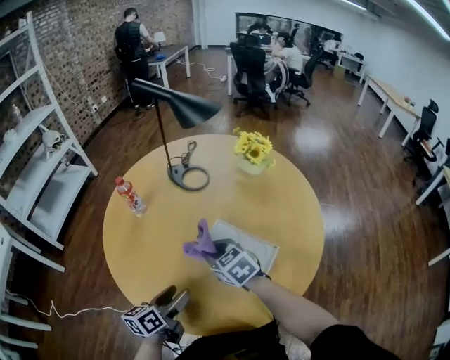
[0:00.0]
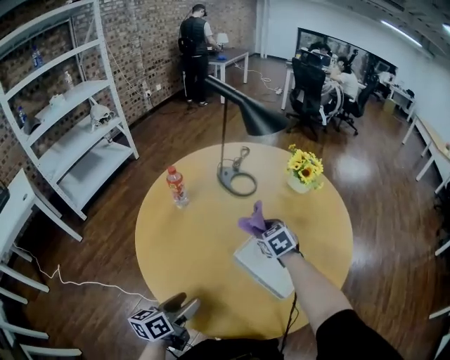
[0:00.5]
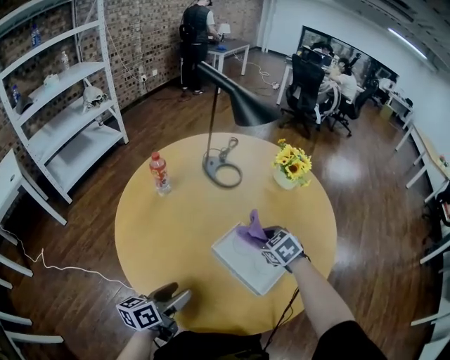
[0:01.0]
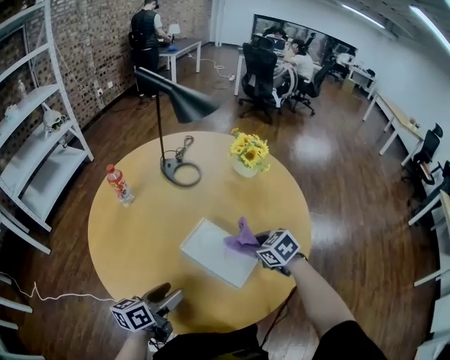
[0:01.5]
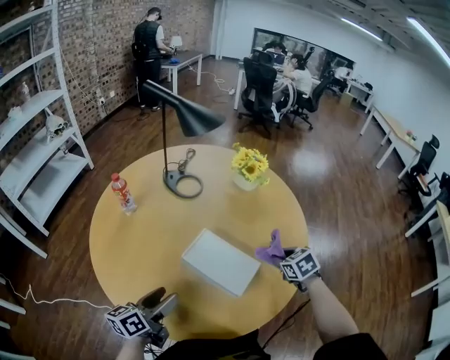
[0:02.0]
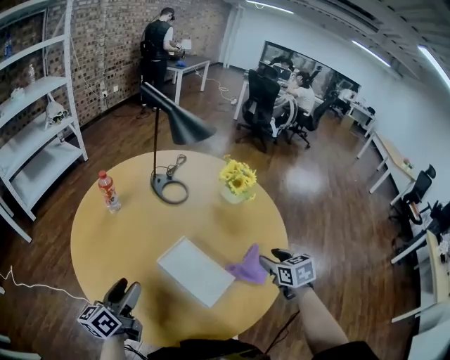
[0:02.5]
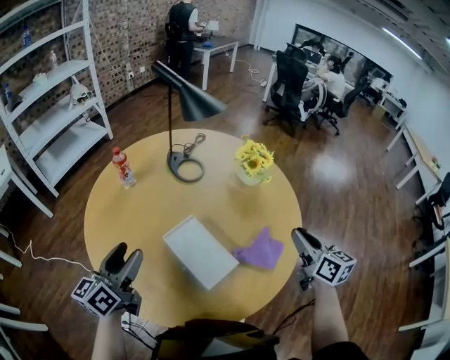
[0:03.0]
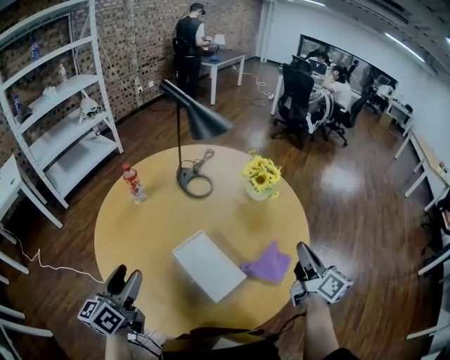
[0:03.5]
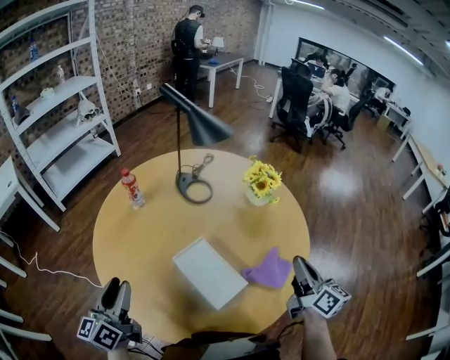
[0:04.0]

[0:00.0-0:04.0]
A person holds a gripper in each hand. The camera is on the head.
0:00.0 to 0:02.0: The right gripper travels to the right by about 30 cm, and changes its angle by about 20 degrees. The left gripper goes to the right and returns, some 5 cm each way.
0:02.0 to 0:04.0: The right gripper shifts some 20 cm upward, tips its fingers upward by about 50 degrees, and closes its fingers. The left gripper moves upward and to the left, some 15 cm, and changes its angle by about 40 degrees.

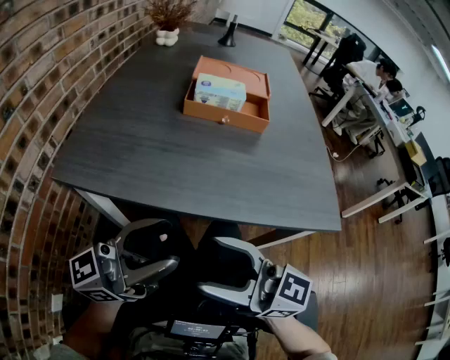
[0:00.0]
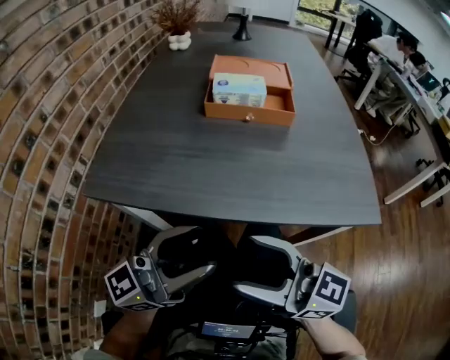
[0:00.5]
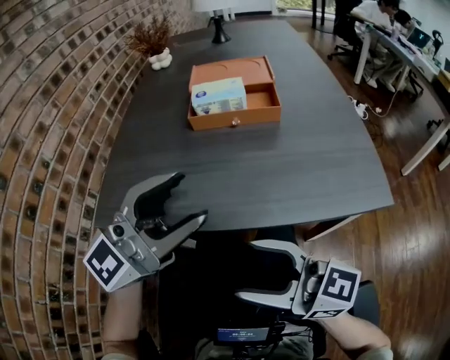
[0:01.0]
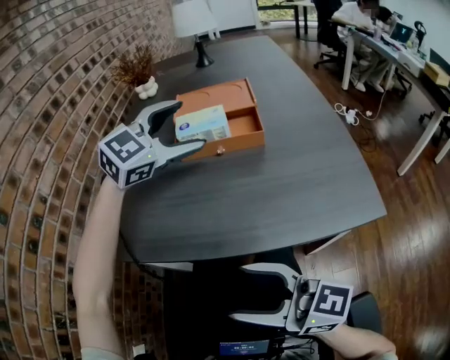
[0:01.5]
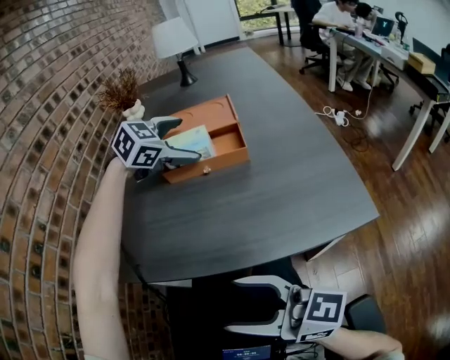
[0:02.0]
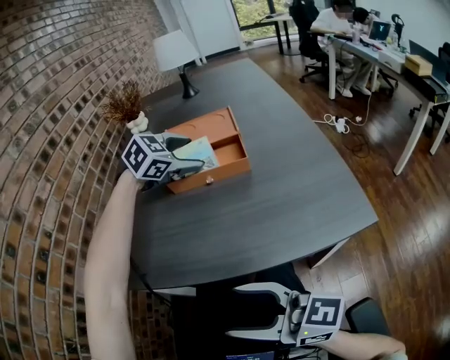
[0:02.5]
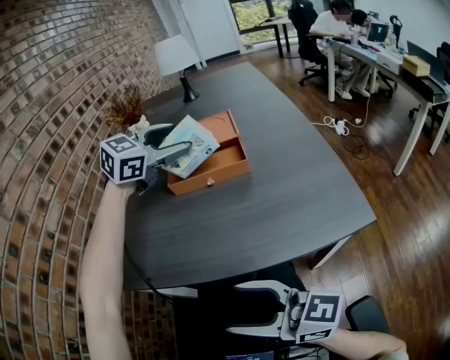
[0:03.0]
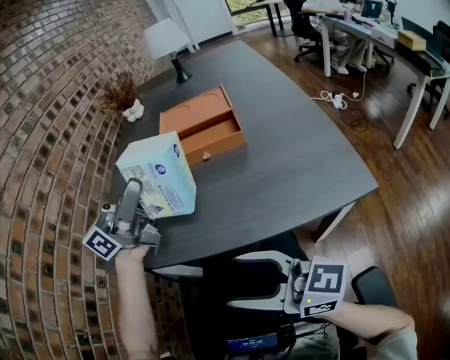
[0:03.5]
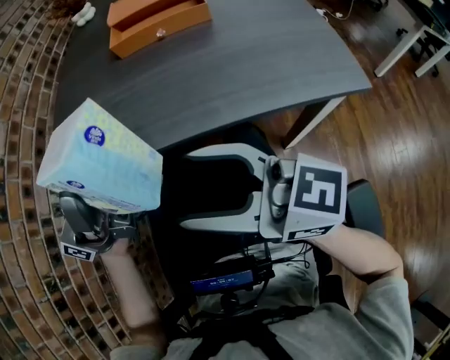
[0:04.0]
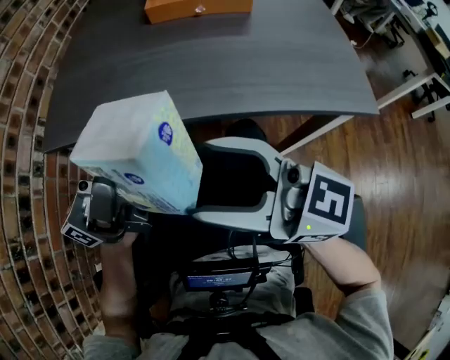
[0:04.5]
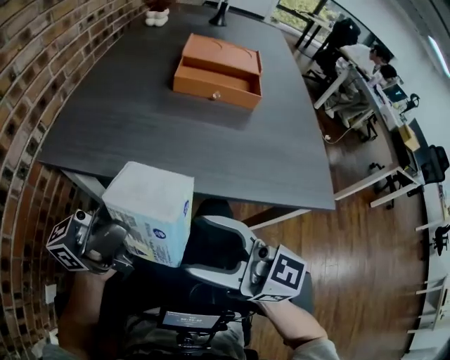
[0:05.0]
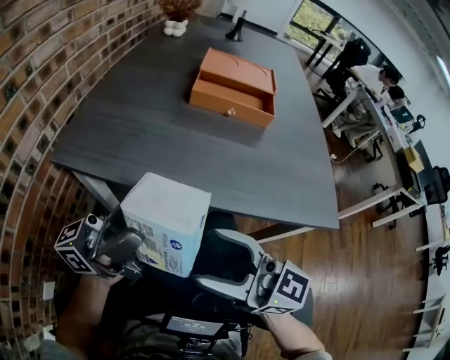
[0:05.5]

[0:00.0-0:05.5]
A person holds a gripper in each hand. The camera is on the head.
0:00.0 to 0:02.0: The left gripper moves forward, about 40 cm, tips its fingers downward by roughly 70 degrees, and opens its fingers.
0:02.0 to 0:03.5: The left gripper is displaced backward, upward and to the left by about 25 cm, angles its fingers upward, by some 70 degrees, and closes its fingers.
0:03.5 to 0:05.5: The left gripper travels backward and downward by approximately 20 cm.

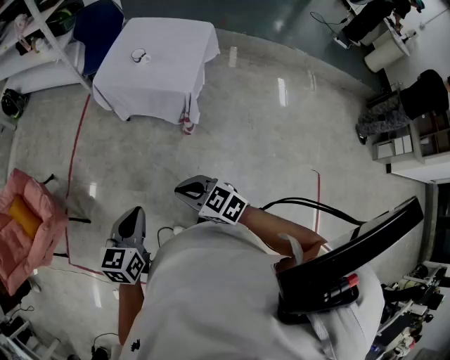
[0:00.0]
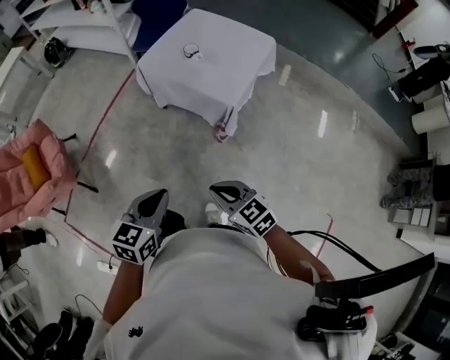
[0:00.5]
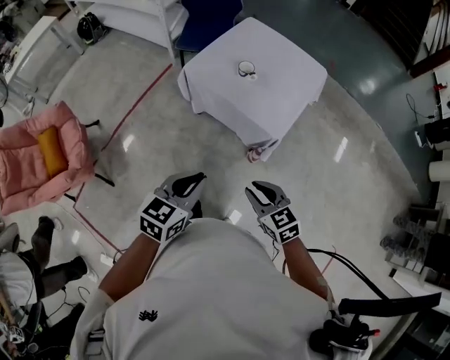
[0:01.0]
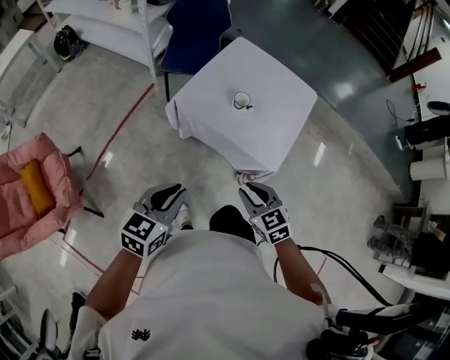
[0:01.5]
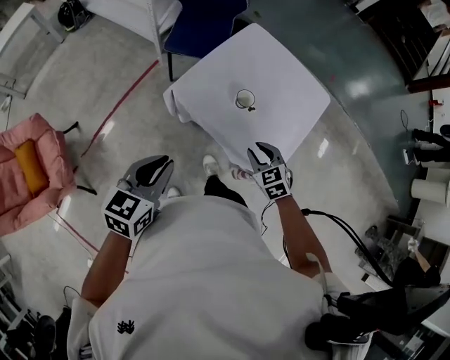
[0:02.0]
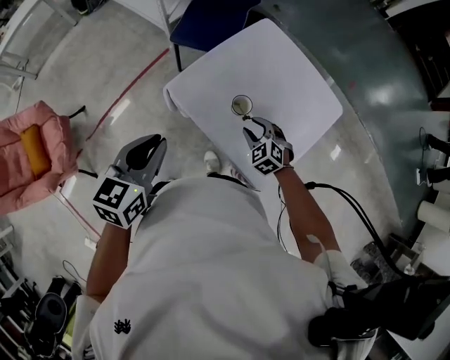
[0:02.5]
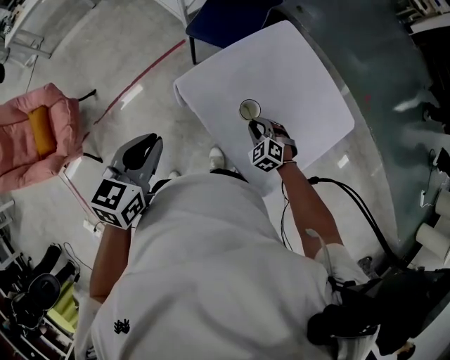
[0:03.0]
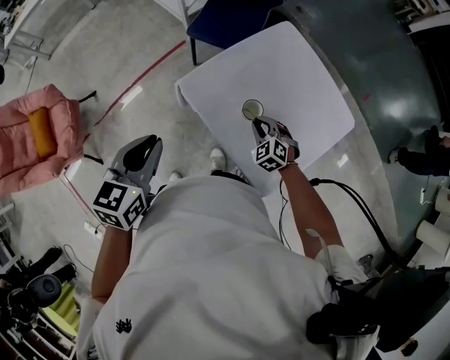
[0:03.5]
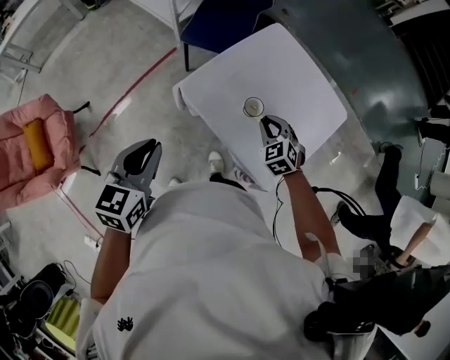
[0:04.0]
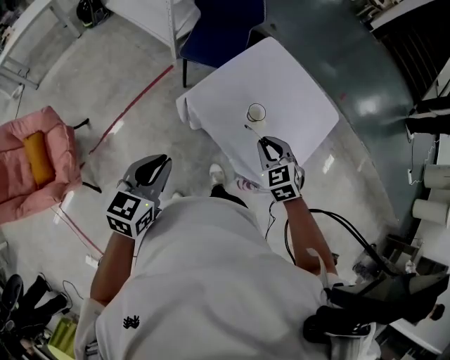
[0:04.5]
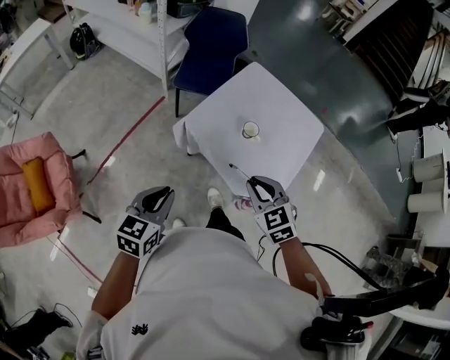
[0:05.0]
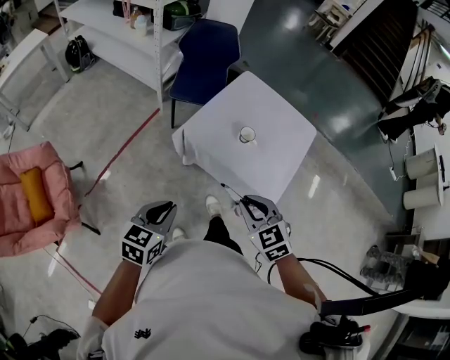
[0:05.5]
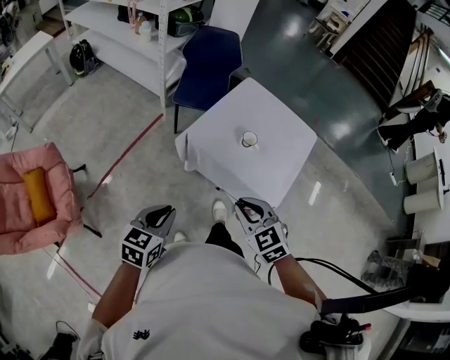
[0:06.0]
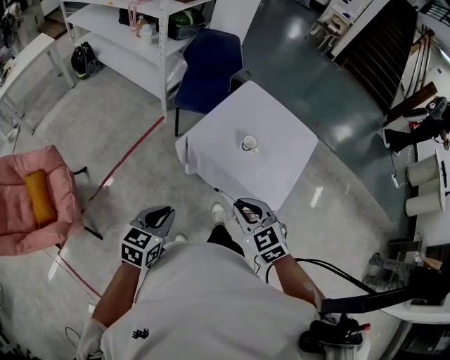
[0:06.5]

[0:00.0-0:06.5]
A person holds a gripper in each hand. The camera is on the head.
0:00.0 to 0:02.0: The two grippers travel together, forward, approximately 50 cm. The right gripper rotates roughly 30 degrees, and opens its fingers.
0:02.0 to 0:04.5: The right gripper goes some 10 cm upward and forward; the left gripper moves approximately 10 cm forward and comes back.
0:04.5 to 0:06.5: The left gripper moves backward, some 15 cm. The right gripper heads backward and to the left, covering roughly 25 cm.

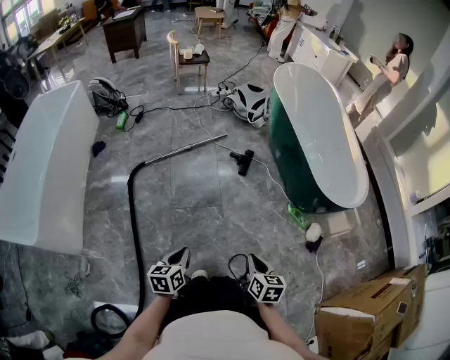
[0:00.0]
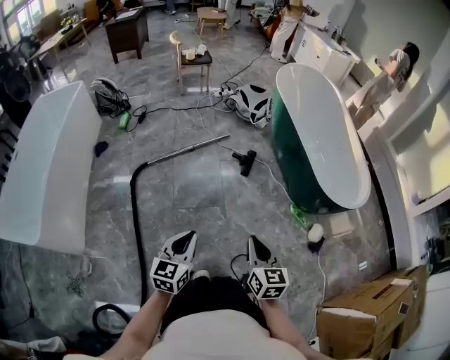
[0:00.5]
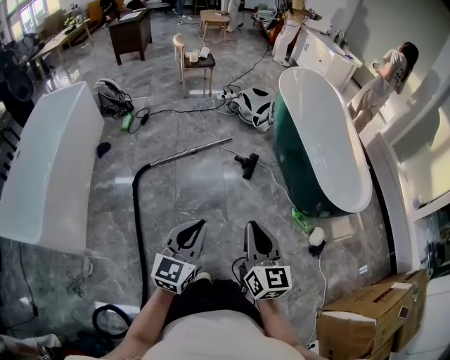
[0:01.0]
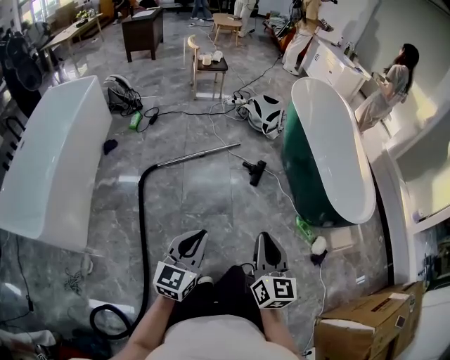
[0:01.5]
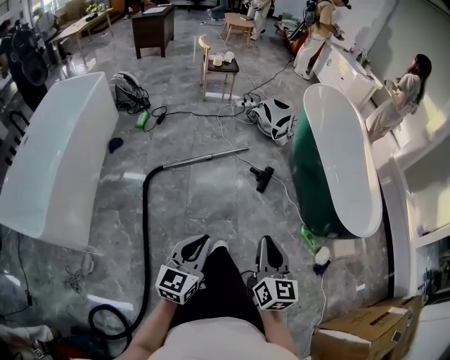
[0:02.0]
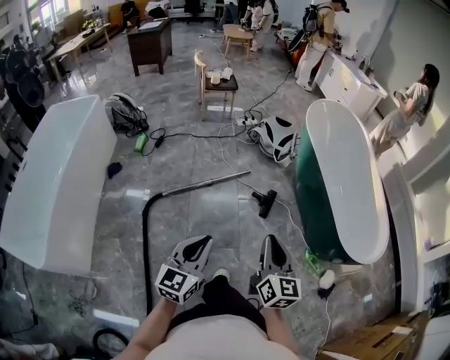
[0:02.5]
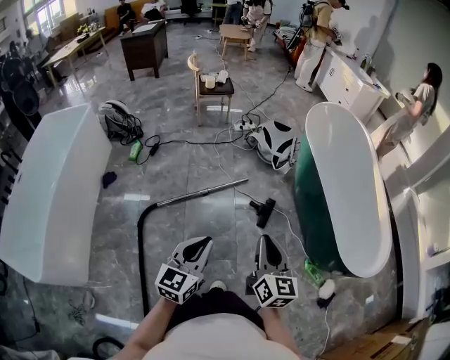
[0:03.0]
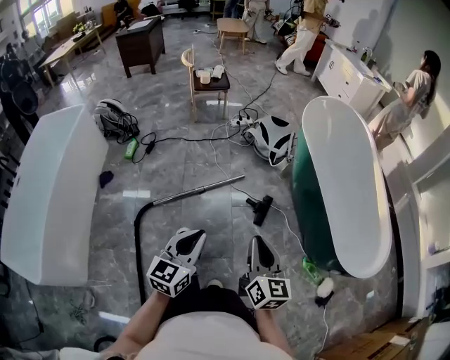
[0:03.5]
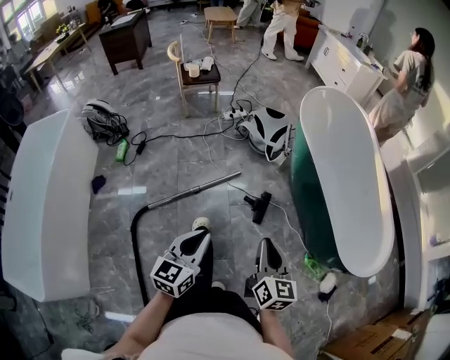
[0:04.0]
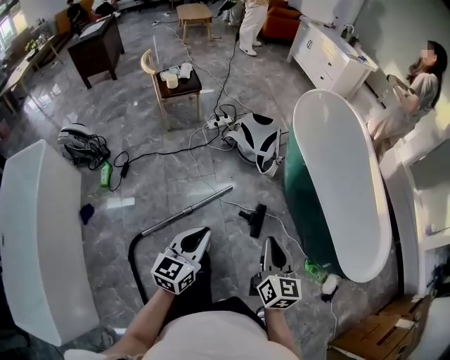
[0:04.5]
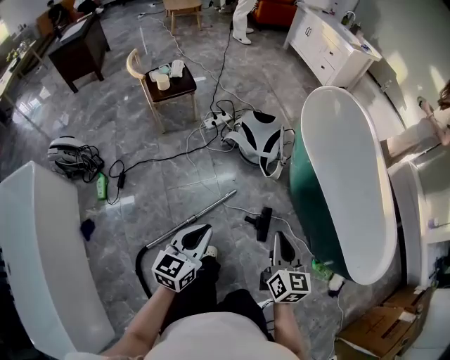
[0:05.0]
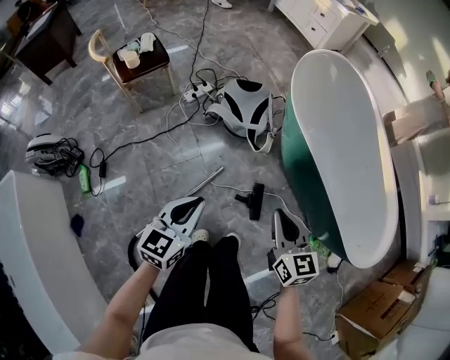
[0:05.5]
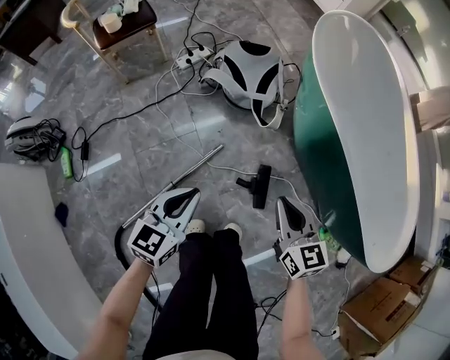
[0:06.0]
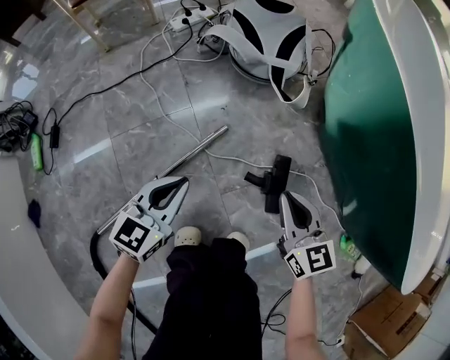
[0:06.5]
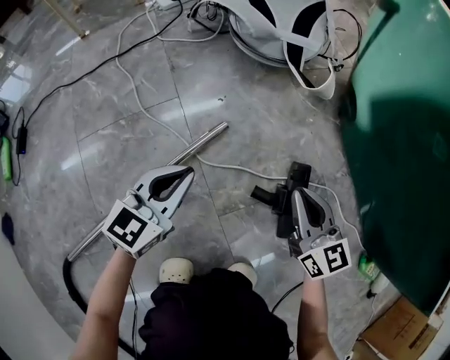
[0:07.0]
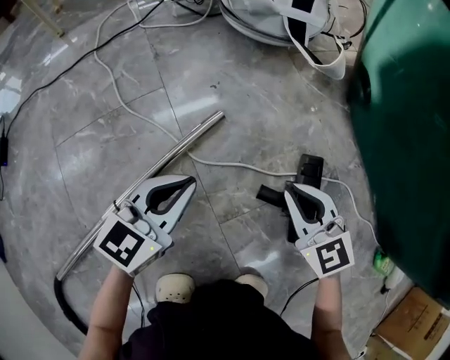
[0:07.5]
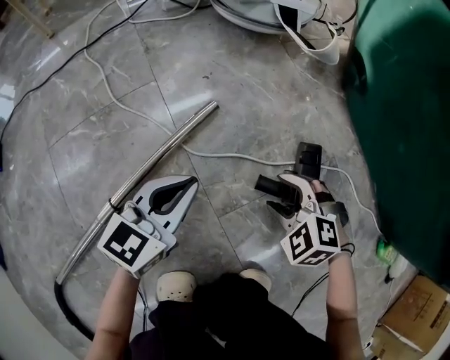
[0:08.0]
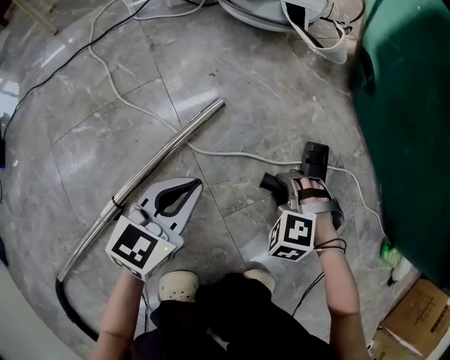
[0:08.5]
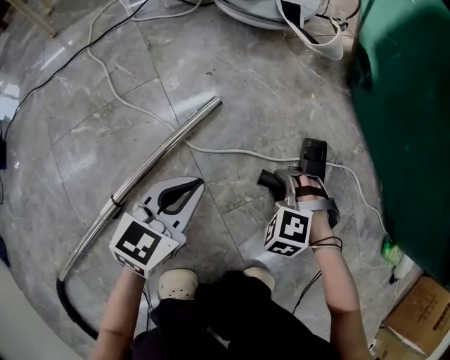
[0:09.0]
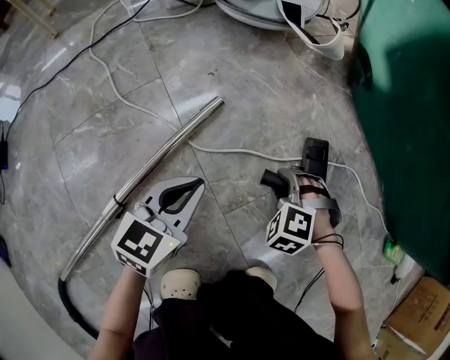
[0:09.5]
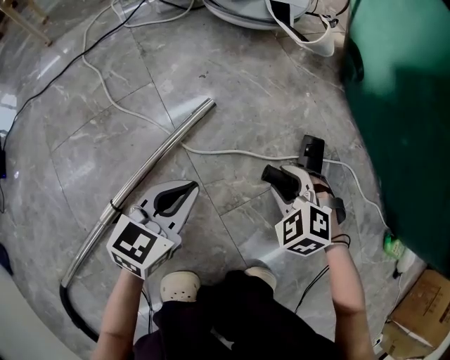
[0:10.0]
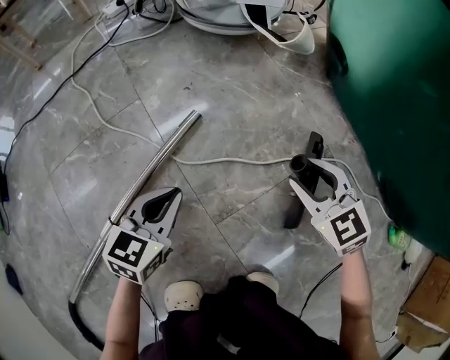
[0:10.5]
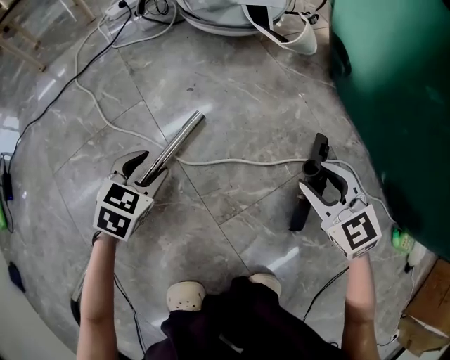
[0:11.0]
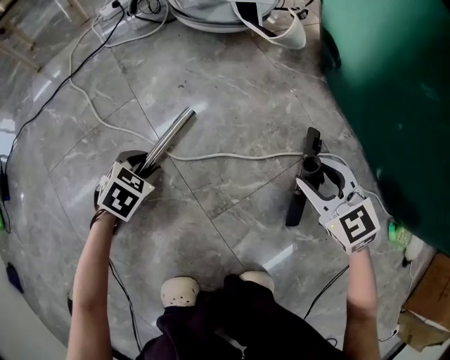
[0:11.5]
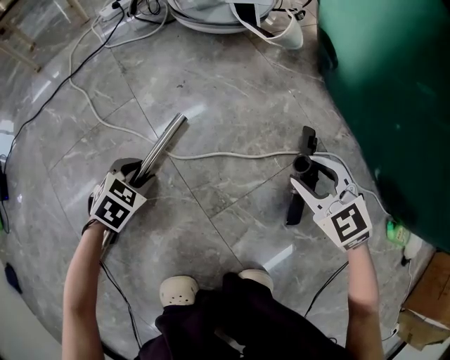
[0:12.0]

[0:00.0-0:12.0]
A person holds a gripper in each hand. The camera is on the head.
0:00.0 to 0:02.0: The left gripper moves upward and forward, some 20 cm, and changes its angle by approximately 30 degrees. Meanwhile the right gripper travels upward, to the left and forward by some 25 cm, and rotates approximately 30 degrees.
0:02.0 to 0:04.0: The two grippers go roughly 35 cm forward.
0:04.0 to 0:06.0: Both grippers move forward and downward, some 40 cm. The left gripper swivels approximately 20 degrees.
0:06.0 to 0:08.0: Both grippers travel together downward, about 60 cm. The right gripper angles its fingers downward, by roughly 40 degrees, and opens its fingers.
0:10.0 to 0:12.0: The left gripper goes about 15 cm downward and to the left, tips its fingers downward by roughly 40 degrees, and opens up; the right gripper heads upward and to the right, covering about 10 cm, and turns by approximately 30 degrees.
